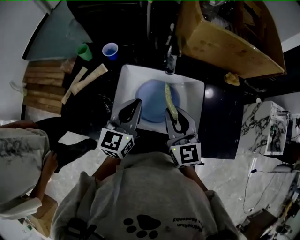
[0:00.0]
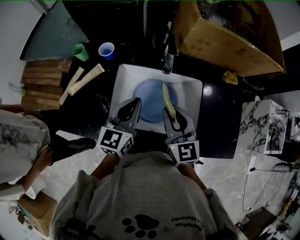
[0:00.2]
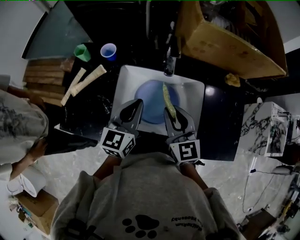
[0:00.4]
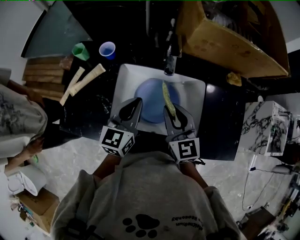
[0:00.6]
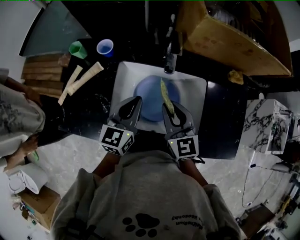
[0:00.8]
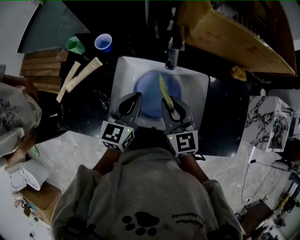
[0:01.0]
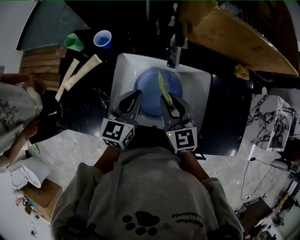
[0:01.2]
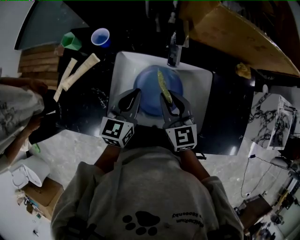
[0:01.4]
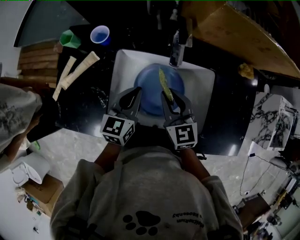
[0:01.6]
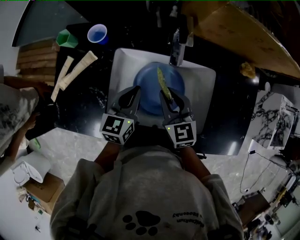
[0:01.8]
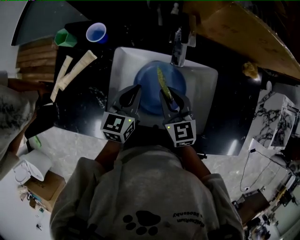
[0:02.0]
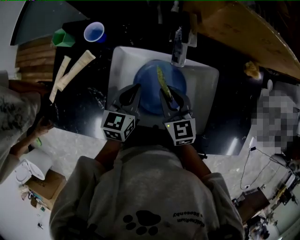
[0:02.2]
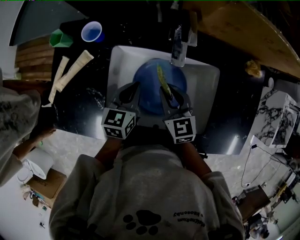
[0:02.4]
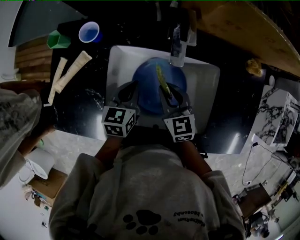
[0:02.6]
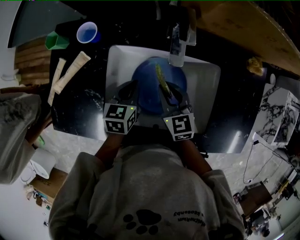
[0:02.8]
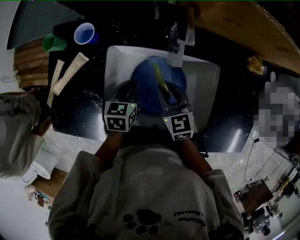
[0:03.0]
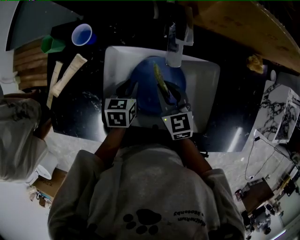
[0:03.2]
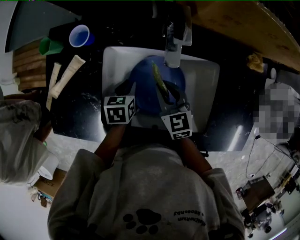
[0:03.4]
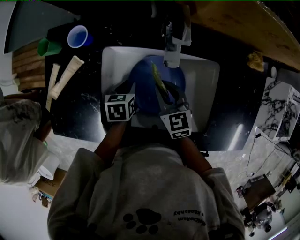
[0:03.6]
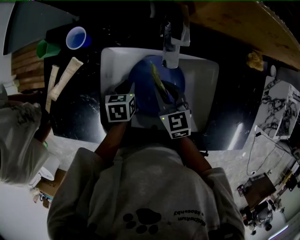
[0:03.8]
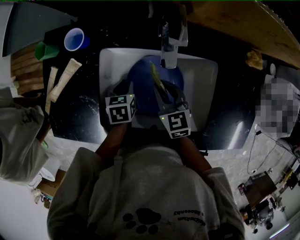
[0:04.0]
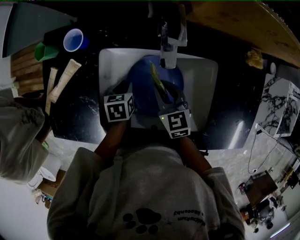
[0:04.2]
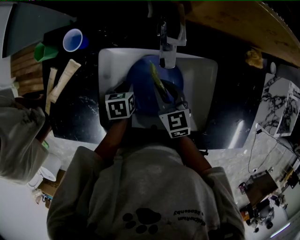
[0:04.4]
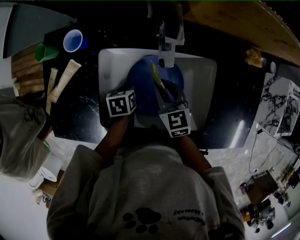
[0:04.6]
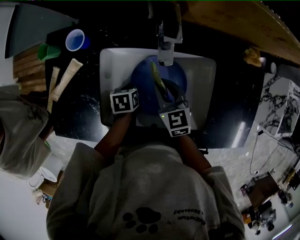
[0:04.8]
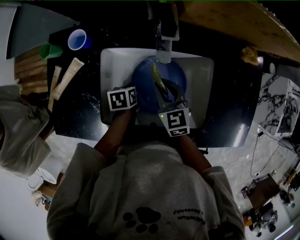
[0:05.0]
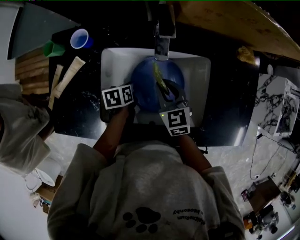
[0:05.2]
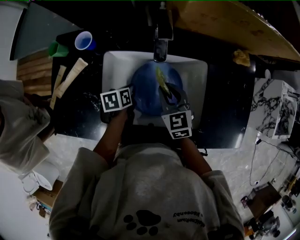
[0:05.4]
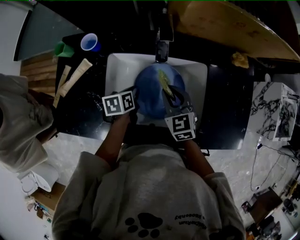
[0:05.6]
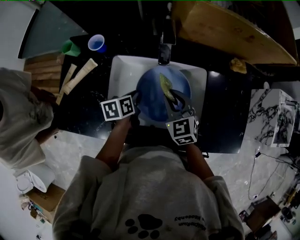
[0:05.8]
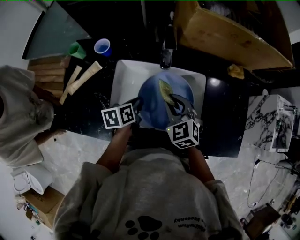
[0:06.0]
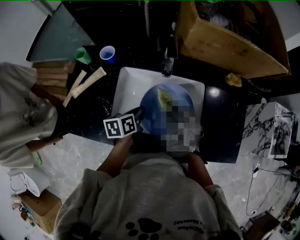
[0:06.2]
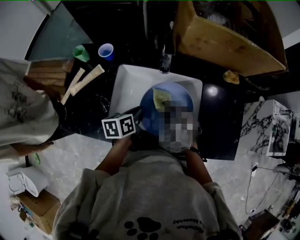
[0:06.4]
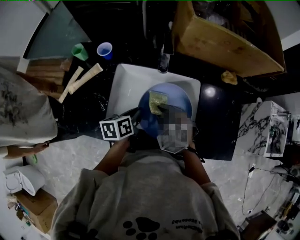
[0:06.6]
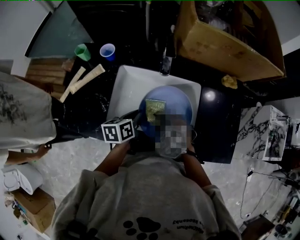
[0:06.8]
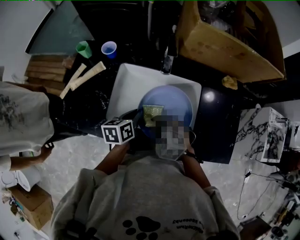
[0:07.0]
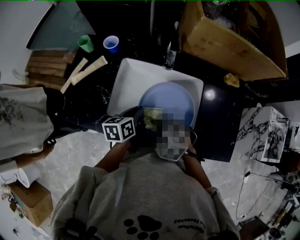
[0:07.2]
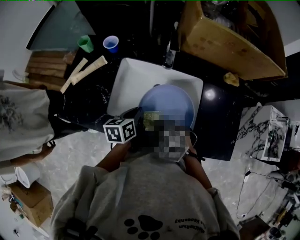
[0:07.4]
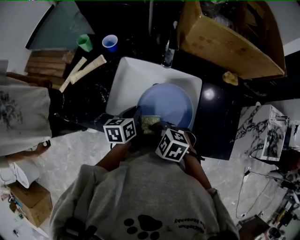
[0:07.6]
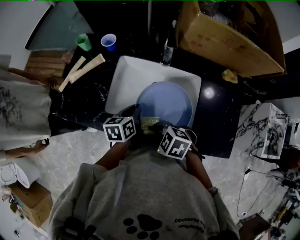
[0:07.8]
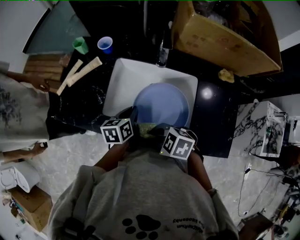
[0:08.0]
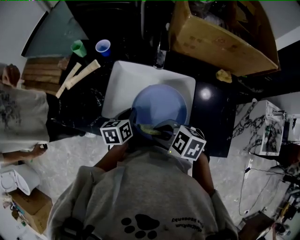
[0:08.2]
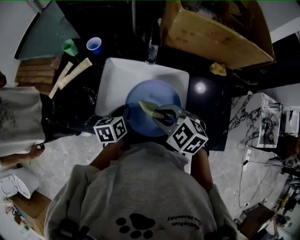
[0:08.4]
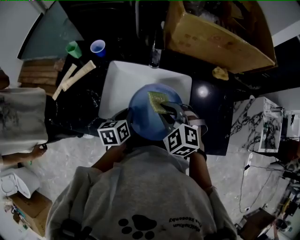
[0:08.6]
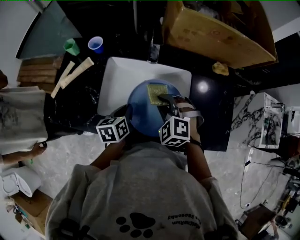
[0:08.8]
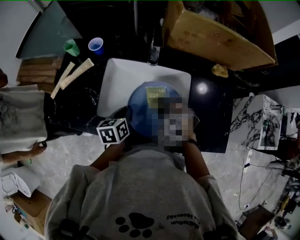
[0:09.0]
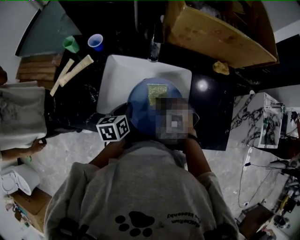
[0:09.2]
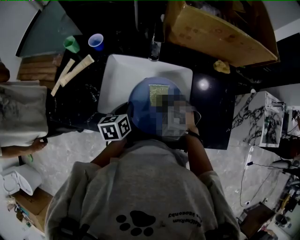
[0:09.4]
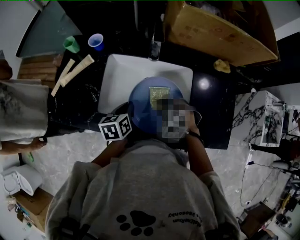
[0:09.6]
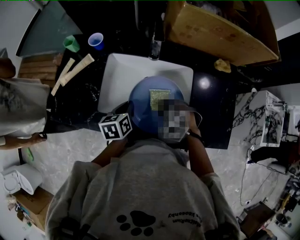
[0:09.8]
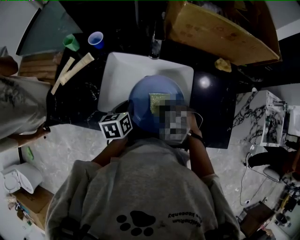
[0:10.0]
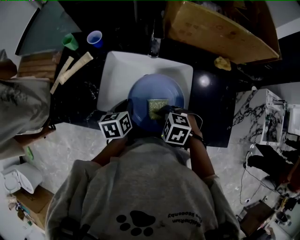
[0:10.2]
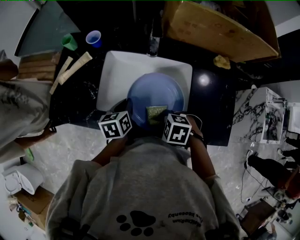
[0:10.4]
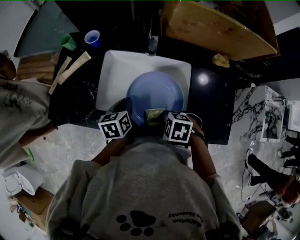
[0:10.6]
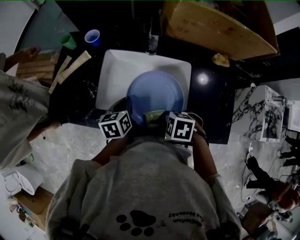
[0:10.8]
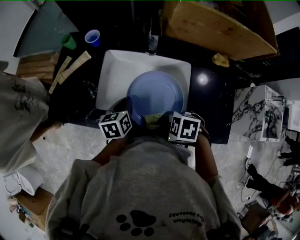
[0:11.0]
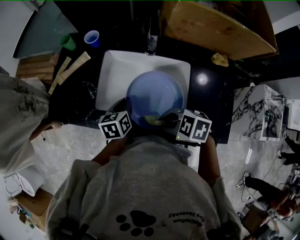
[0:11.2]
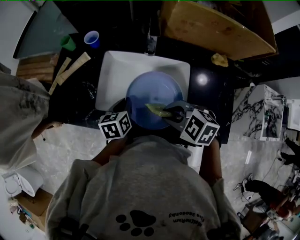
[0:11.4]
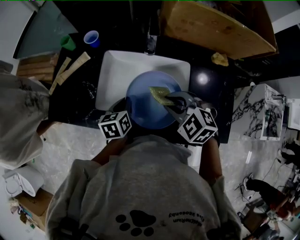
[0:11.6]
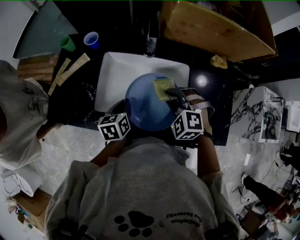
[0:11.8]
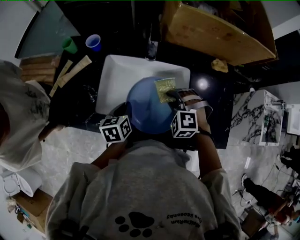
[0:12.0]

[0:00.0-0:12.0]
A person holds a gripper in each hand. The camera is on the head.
0:00.0 to 0:01.6: The left gripper travels downward by roughly 10 cm. Meanwhile the right gripper moves downward and forward, some 10 cm.
0:01.6 to 0:03.0: The two grippers go approximately 10 cm downward. The left gripper swivels roughly 20 degrees.
0:03.0 to 0:04.4: The left gripper heads downward, covering approximately 5 cm, and turns by roughly 20 degrees.
0:04.4 to 0:06.0: The grippers both shift upward by about 10 cm. The left gripper rotates approximately 30 degrees. Meanwhile the right gripper swivels some 30 degrees.
0:06.0 to 0:07.6: The right gripper moves some 20 cm, and turns by approximately 50 degrees. Meanwhile the left gripper ends up approximately 5 cm from where it was.
0:07.6 to 0:09.0: The right gripper travels upward and back again, approximately 10 cm each way, and turns by approximately 40 degrees.
0:09.0 to 0:10.4: The right gripper ends up some 15 cm from where it was, and changes its angle by about 40 degrees.
0:10.4 to 0:12.0: The right gripper moves approximately 10 cm upward and comes back, and turns by roughly 50 degrees.

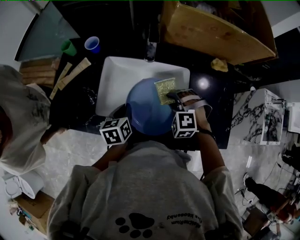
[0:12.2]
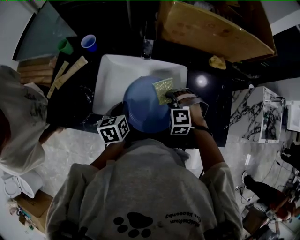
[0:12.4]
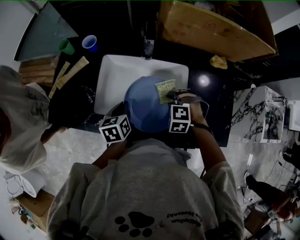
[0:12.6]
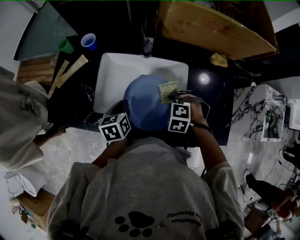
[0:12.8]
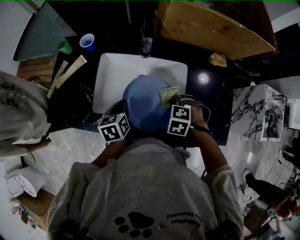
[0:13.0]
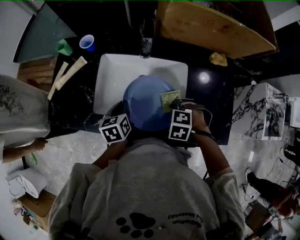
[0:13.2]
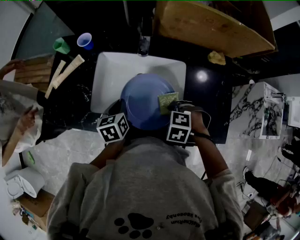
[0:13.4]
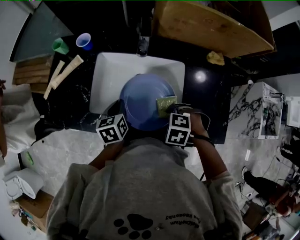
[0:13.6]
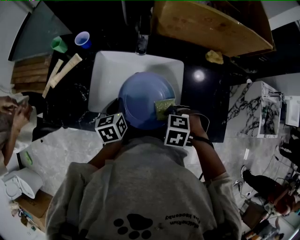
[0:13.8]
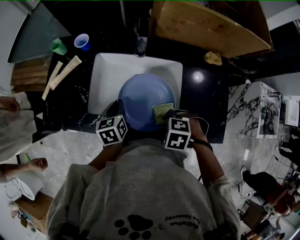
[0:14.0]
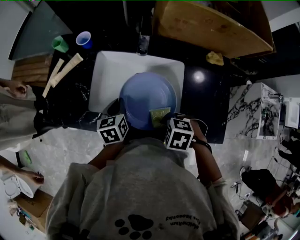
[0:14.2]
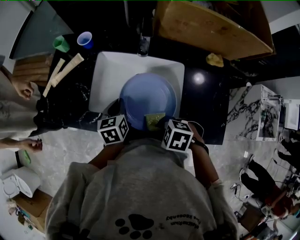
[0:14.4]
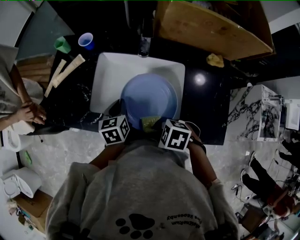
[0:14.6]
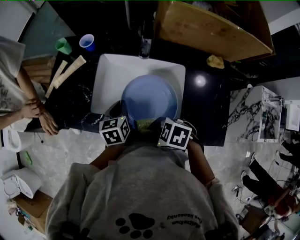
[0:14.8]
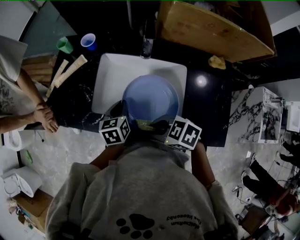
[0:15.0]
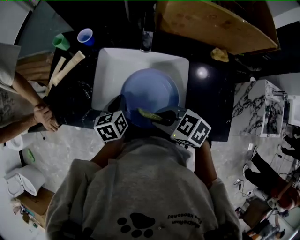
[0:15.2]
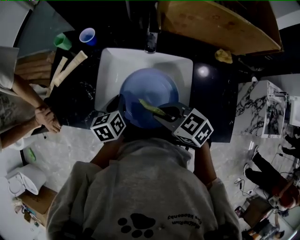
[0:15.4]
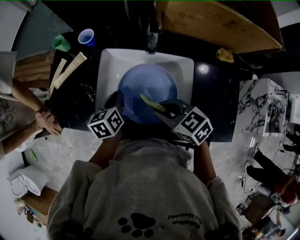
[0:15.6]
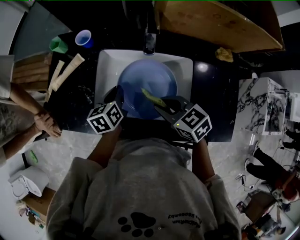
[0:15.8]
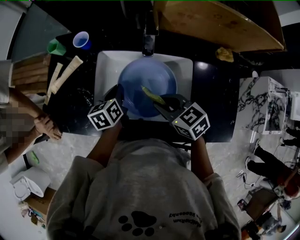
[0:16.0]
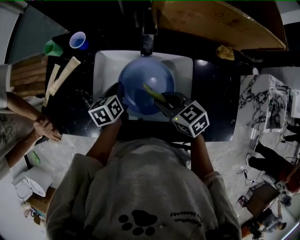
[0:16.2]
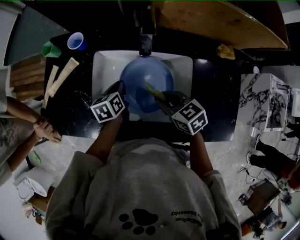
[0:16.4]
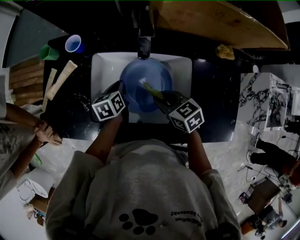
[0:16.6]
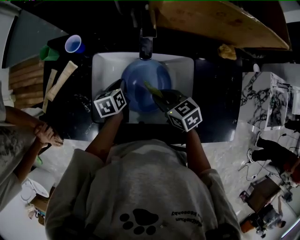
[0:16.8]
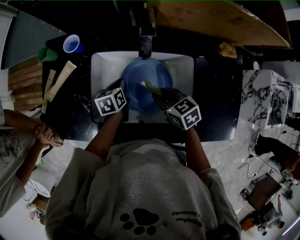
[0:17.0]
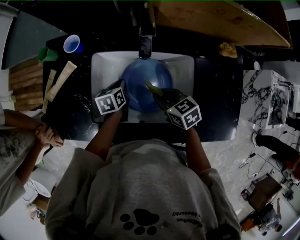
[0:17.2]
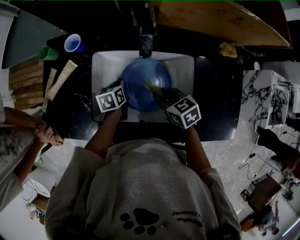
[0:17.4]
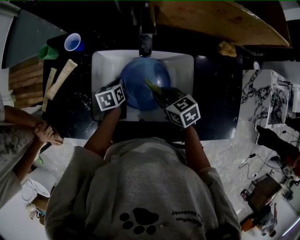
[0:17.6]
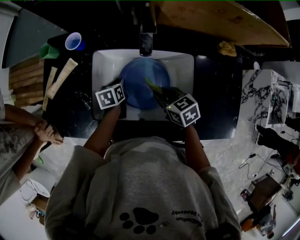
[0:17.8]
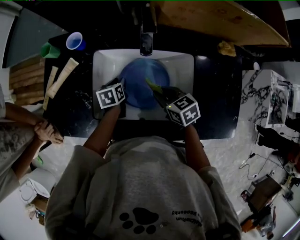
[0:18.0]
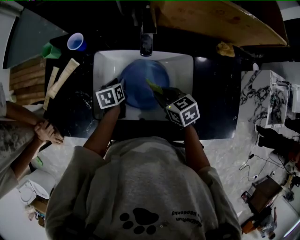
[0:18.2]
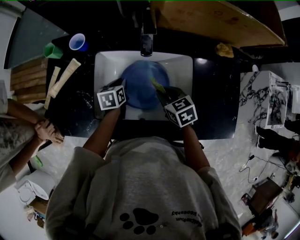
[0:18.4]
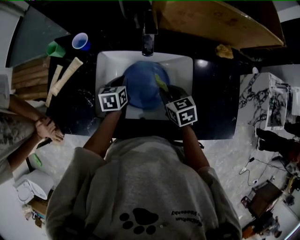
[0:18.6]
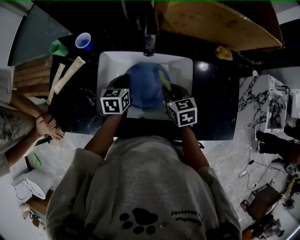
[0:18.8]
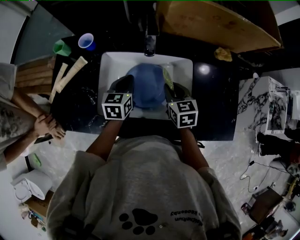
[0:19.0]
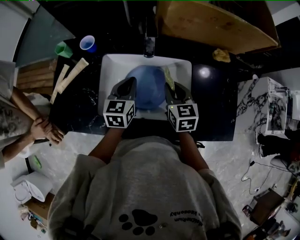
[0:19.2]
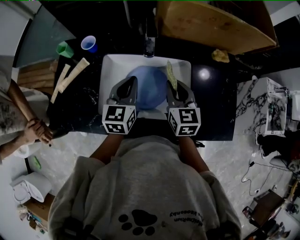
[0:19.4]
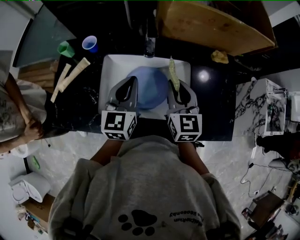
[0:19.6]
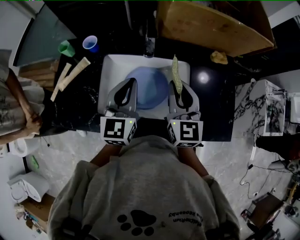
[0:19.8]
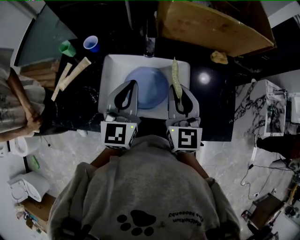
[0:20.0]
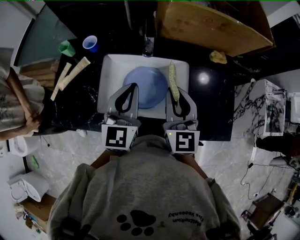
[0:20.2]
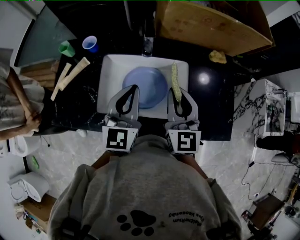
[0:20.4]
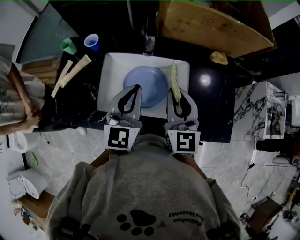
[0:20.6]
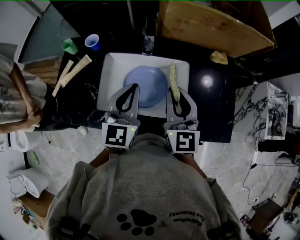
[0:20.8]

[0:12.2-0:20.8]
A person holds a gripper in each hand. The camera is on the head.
0:12.2 to 0:13.6: The right gripper changes place by about 10 cm, and changes its angle by approximately 40 degrees.
0:13.6 to 0:15.0: The right gripper moves approximately 15 cm, and tilts its fingers approximately 40 degrees upward.
0:15.0 to 0:16.6: The left gripper moves some 15 cm. The right gripper shifts by approximately 15 cm, and changes its angle by roughly 40 degrees.
0:16.6 to 0:18.0: The left gripper is displaced downward by about 5 cm, and opens up.
0:18.0 to 0:19.4: The right gripper travels upward by some 10 cm, and rotates about 40 degrees, while the left gripper moves upward, some 25 cm, points its fingers approximately 30 degrees further upward, and closes up.
0:19.4 to 0:20.8: The two grippers go some 10 cm upward and backward. The right gripper changes its angle by roughly 20 degrees.

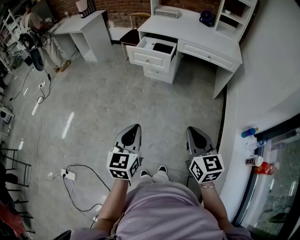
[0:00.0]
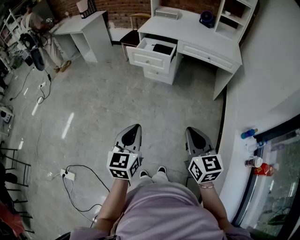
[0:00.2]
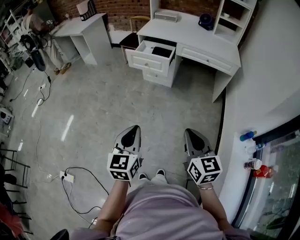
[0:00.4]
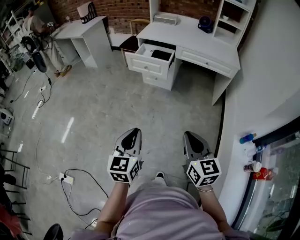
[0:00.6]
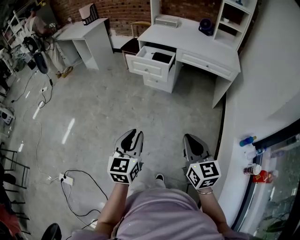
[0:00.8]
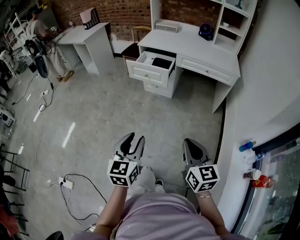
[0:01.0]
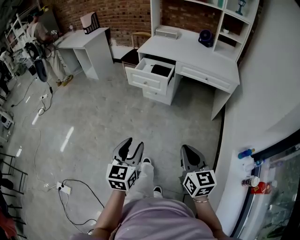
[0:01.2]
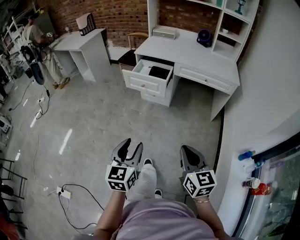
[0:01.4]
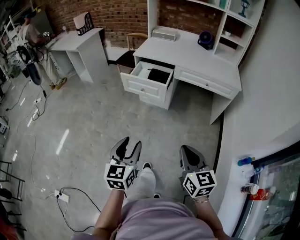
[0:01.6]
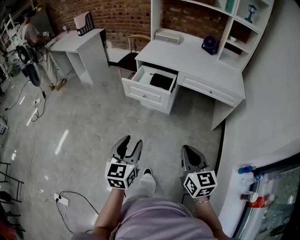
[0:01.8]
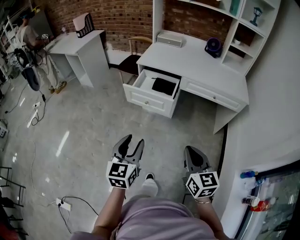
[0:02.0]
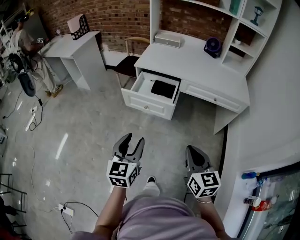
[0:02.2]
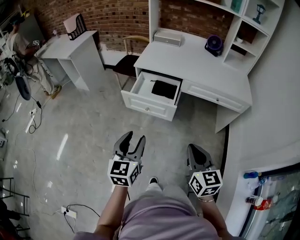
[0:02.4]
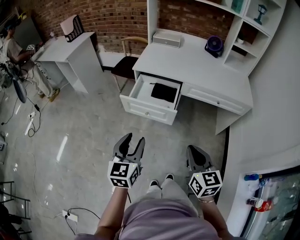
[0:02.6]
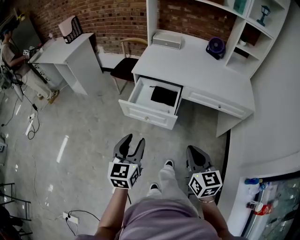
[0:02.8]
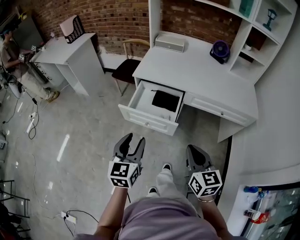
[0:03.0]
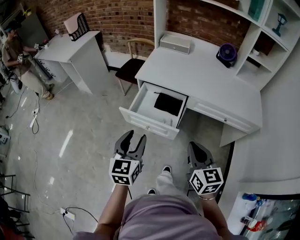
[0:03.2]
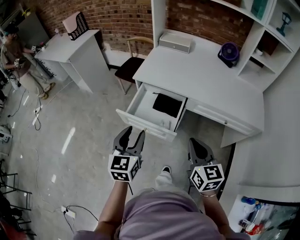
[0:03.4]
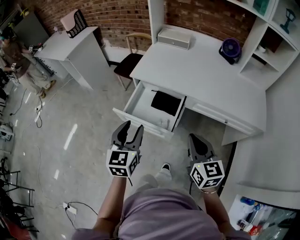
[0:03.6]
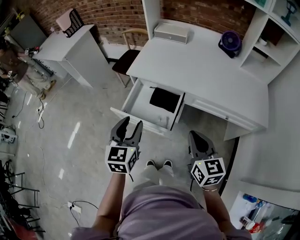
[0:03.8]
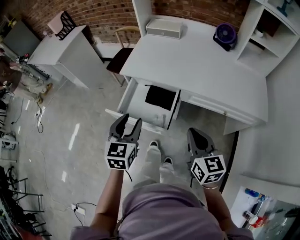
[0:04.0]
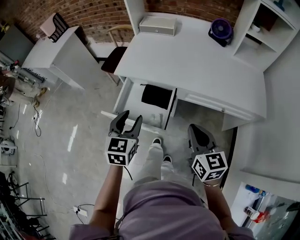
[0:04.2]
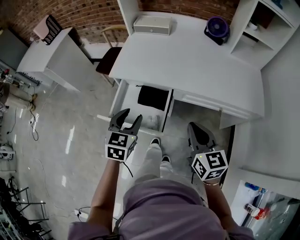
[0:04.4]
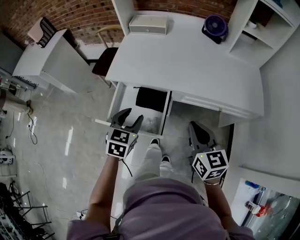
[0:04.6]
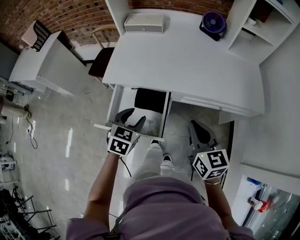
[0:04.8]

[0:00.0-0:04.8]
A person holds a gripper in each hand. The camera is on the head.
0:00.0 to 0:01.6: The grippers both shift forward by some 15 cm. The left gripper opens its fingers.
0:01.6 to 0:03.2: Both grippers travel together forward, about 40 cm.
0:03.2 to 0:04.8: The left gripper travels forward, to the right and downward by approximately 25 cm, and rotates about 40 degrees, while the right gripper travels forward and to the right by approximately 20 cm.
